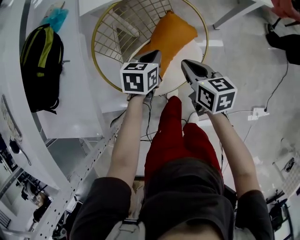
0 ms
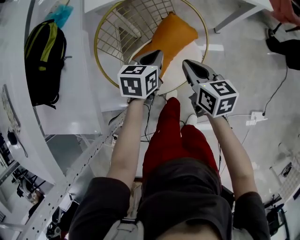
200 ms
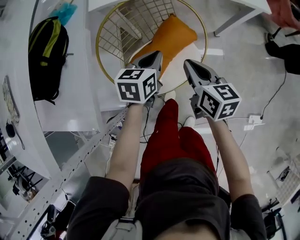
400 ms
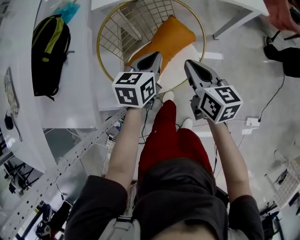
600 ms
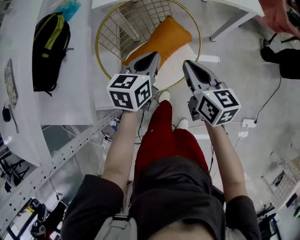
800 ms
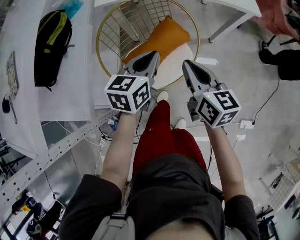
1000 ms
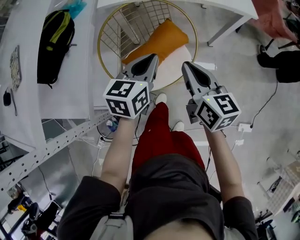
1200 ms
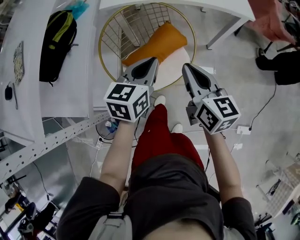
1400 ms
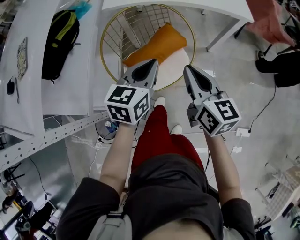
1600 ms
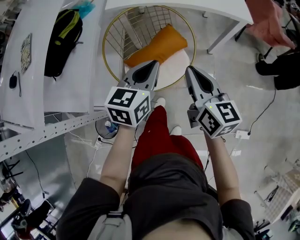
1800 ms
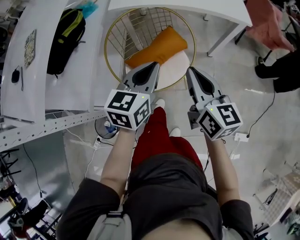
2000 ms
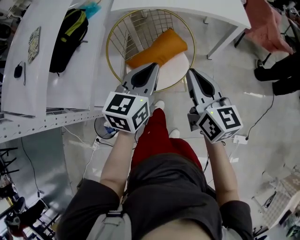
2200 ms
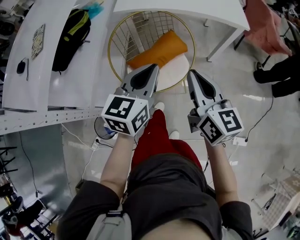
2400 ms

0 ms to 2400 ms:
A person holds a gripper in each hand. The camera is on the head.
0 ms to 1200 ms: The grippers both shift upward and backward by roughly 15 cm. The left gripper turns by some 20 degrees.
1200 ms to 2400 ms: The right gripper heads upward and backward, covering some 15 cm. The left gripper goes about 15 cm backward and upward.

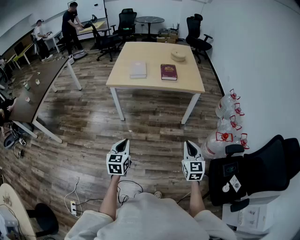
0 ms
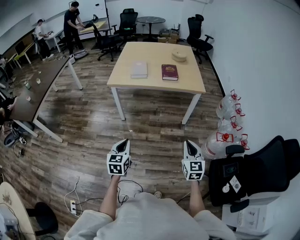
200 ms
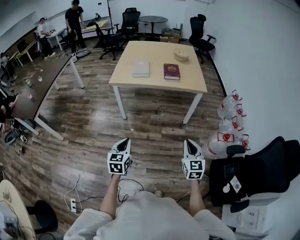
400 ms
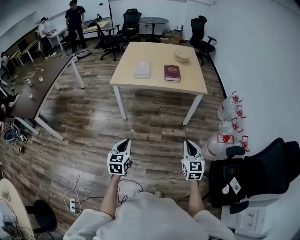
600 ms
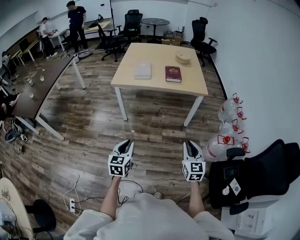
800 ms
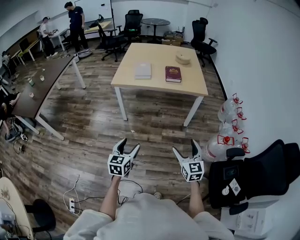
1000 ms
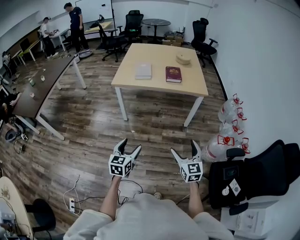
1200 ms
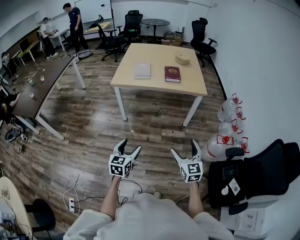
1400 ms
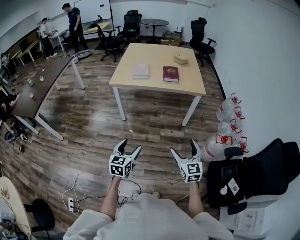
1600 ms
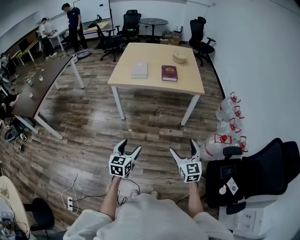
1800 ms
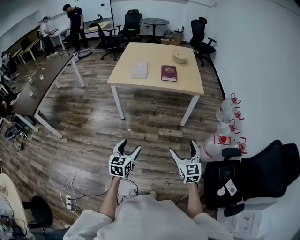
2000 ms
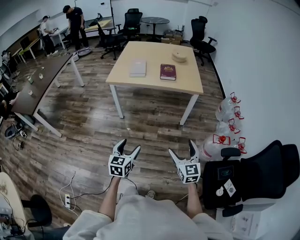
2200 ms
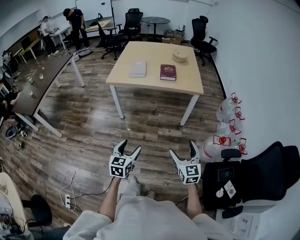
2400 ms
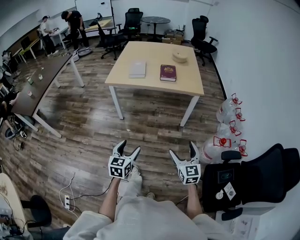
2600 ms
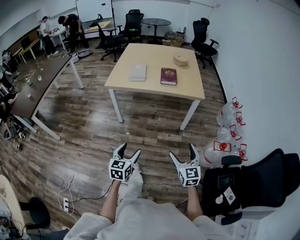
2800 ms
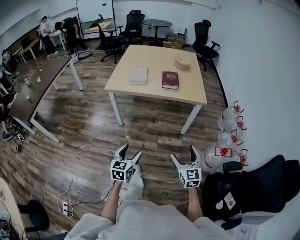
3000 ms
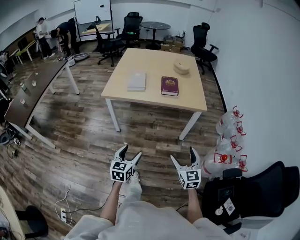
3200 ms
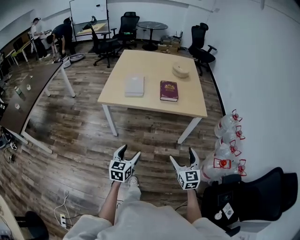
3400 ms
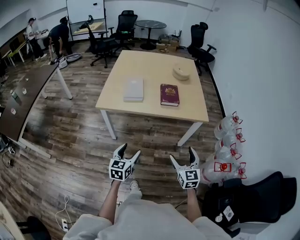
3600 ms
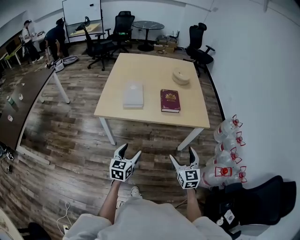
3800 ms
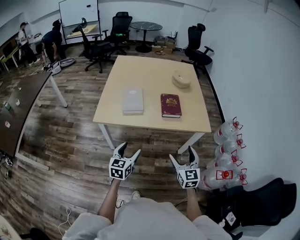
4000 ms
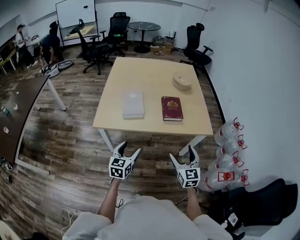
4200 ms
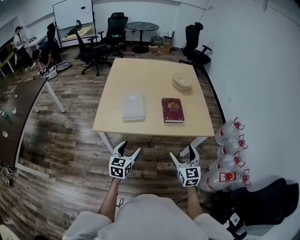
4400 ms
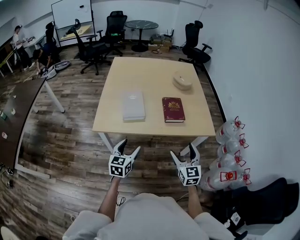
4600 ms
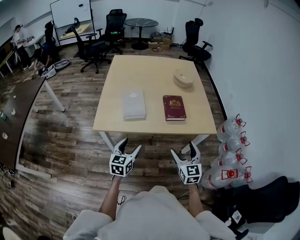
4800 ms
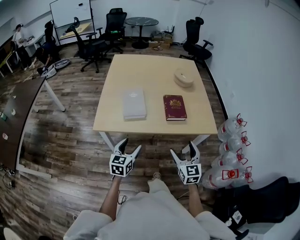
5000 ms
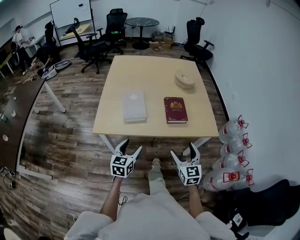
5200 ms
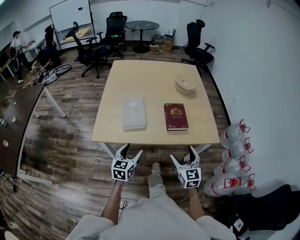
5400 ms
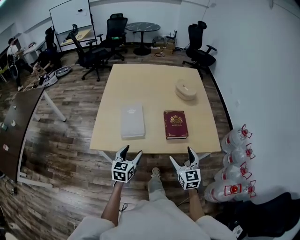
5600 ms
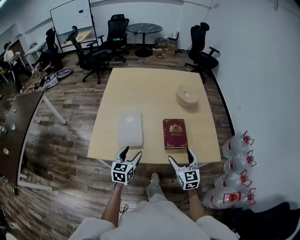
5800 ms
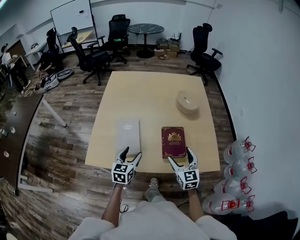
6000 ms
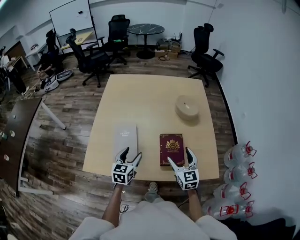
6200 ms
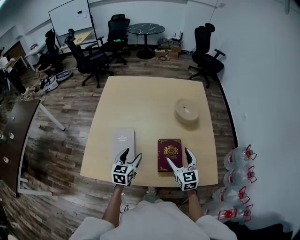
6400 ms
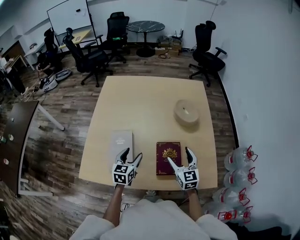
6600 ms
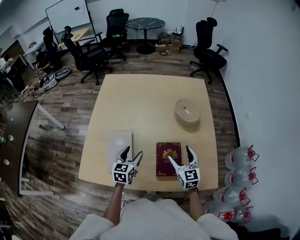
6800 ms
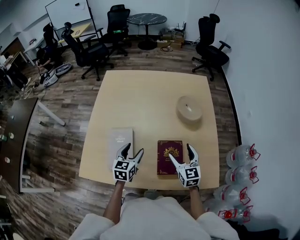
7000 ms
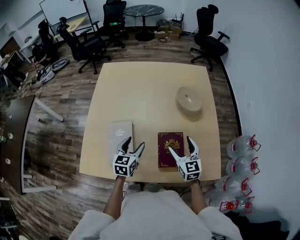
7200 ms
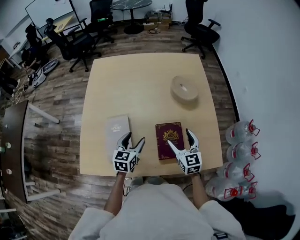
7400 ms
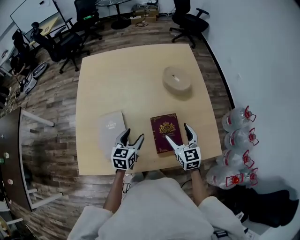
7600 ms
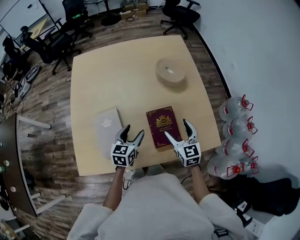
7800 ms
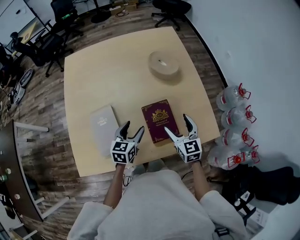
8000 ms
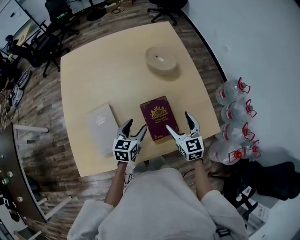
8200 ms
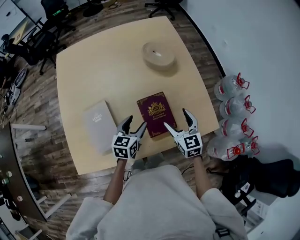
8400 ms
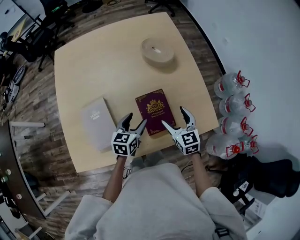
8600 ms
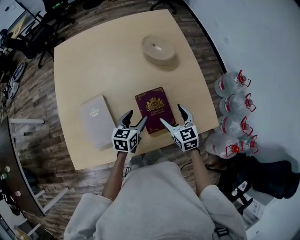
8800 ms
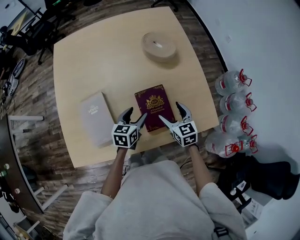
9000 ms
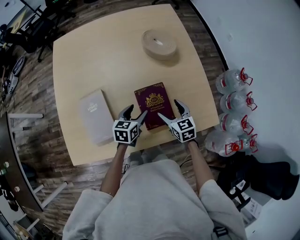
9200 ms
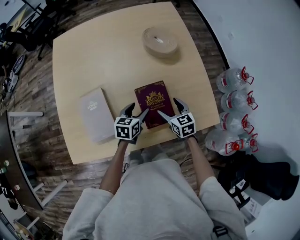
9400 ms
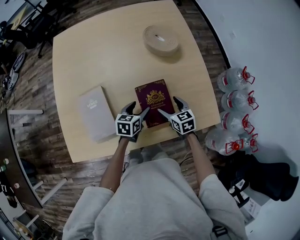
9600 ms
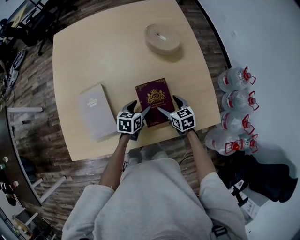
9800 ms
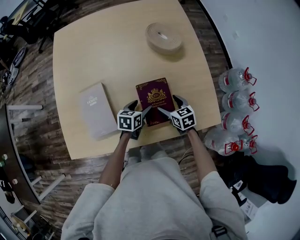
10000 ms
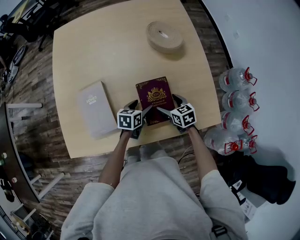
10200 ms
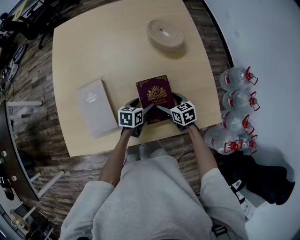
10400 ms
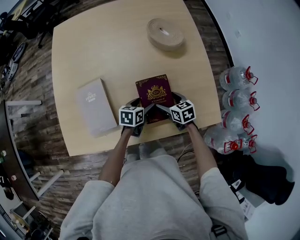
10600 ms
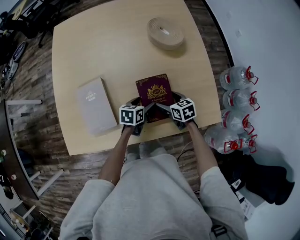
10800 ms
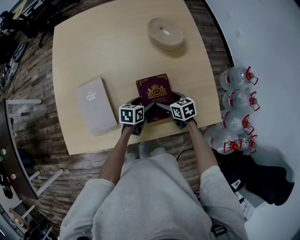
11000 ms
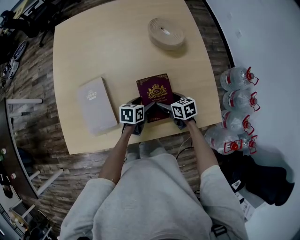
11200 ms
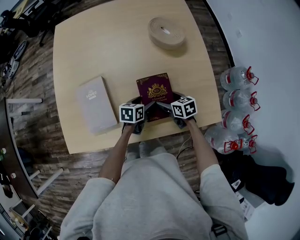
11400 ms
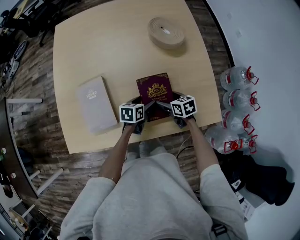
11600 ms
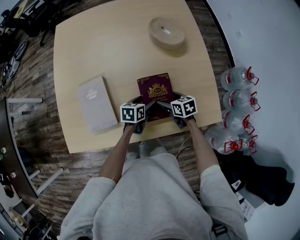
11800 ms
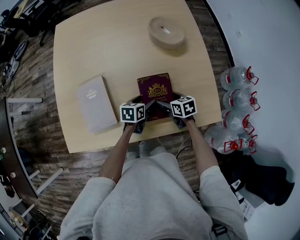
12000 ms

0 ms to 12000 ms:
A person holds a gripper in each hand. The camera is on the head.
0 ms to 1600 ms: The left gripper opens up, while the right gripper opens.
1600 ms to 3000 ms: Both grippers move forward, about 10 cm.
3000 ms to 4400 ms: The grippers both shift forward by roughly 35 cm.
4400 ms to 6000 ms: Both grippers move forward, about 25 cm.
6000 ms to 7600 ms: The left gripper goes some 15 cm forward and to the right, while the right gripper shifts about 10 cm forward.
7600 ms to 9000 ms: The left gripper goes approximately 10 cm to the right and downward, while the right gripper is displaced downward by approximately 10 cm.
9000 ms to 10400 ms: The two grippers go about 10 cm downward. The right gripper changes its angle by approximately 20 degrees.
10400 ms to 12000 ms: The grippers stay close to where they were, moving slightly.

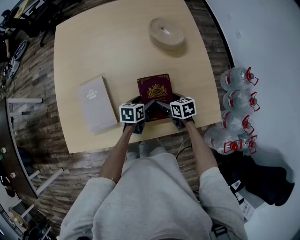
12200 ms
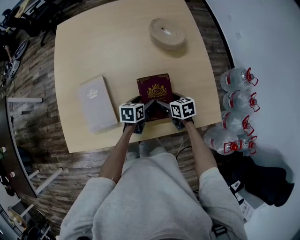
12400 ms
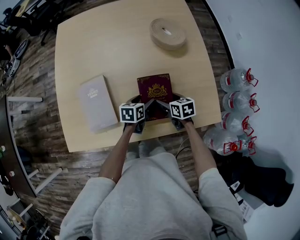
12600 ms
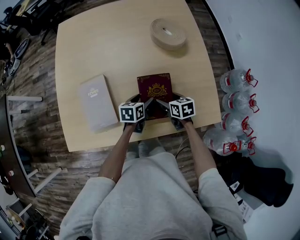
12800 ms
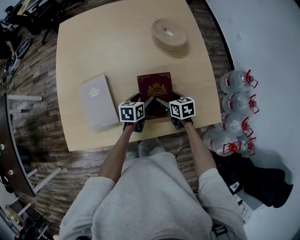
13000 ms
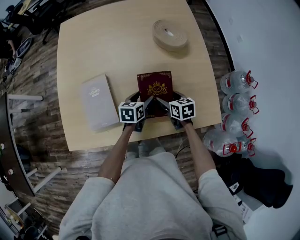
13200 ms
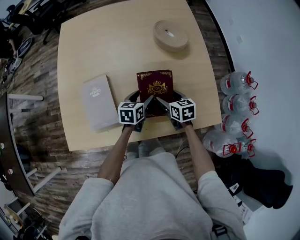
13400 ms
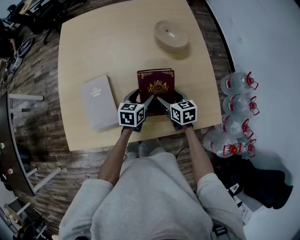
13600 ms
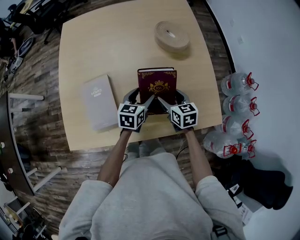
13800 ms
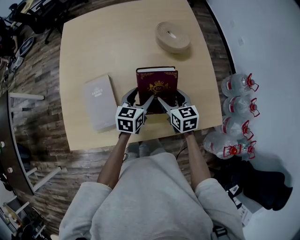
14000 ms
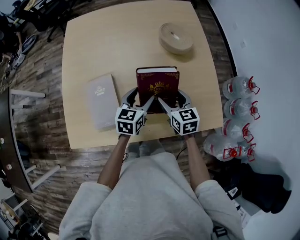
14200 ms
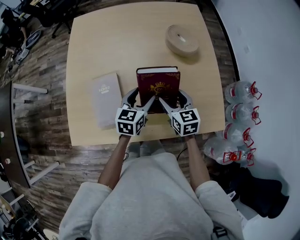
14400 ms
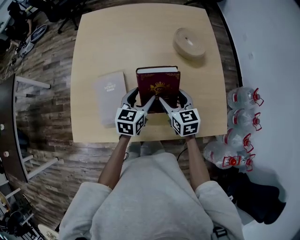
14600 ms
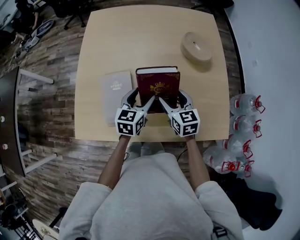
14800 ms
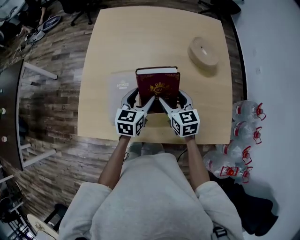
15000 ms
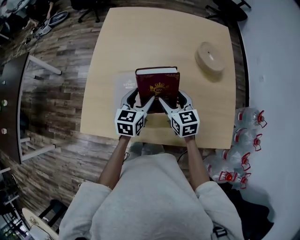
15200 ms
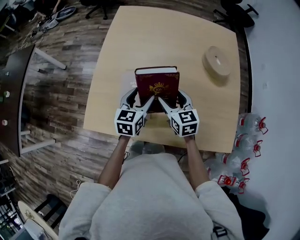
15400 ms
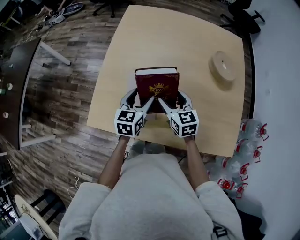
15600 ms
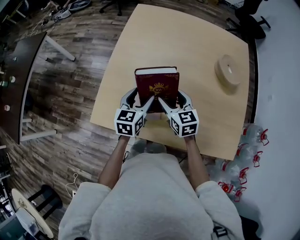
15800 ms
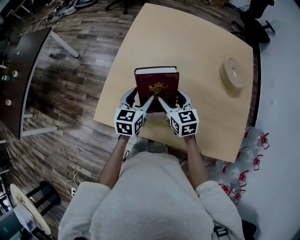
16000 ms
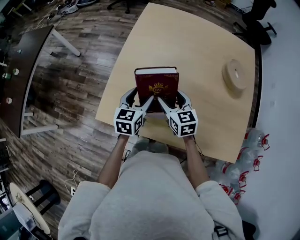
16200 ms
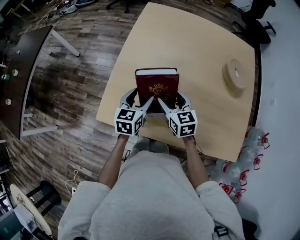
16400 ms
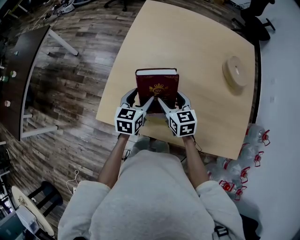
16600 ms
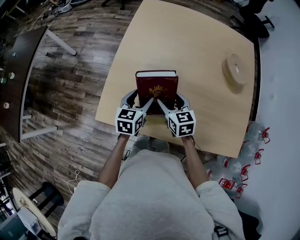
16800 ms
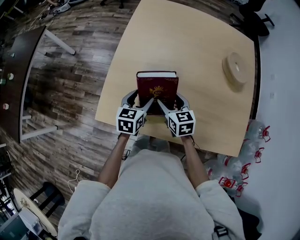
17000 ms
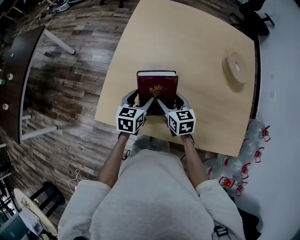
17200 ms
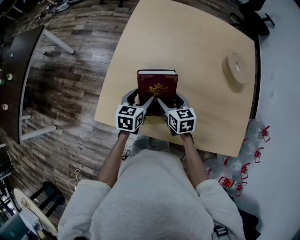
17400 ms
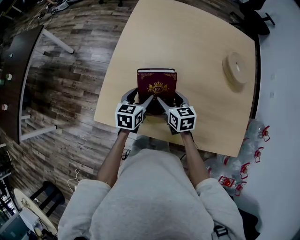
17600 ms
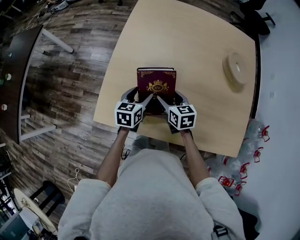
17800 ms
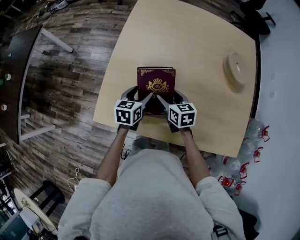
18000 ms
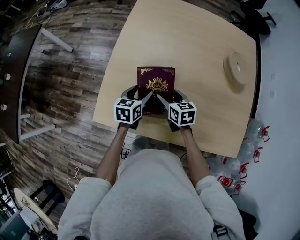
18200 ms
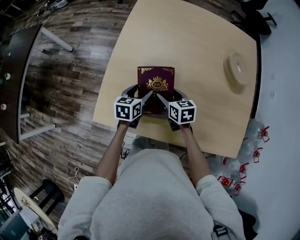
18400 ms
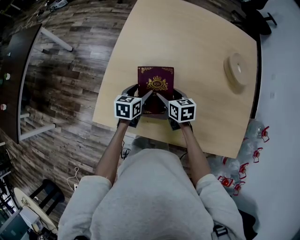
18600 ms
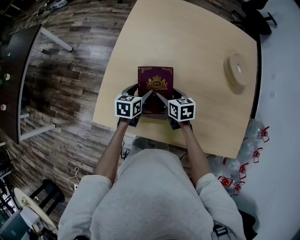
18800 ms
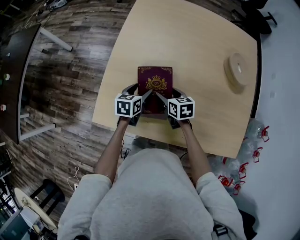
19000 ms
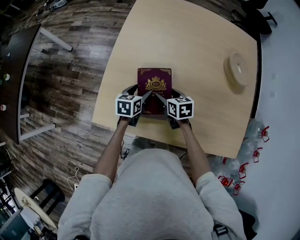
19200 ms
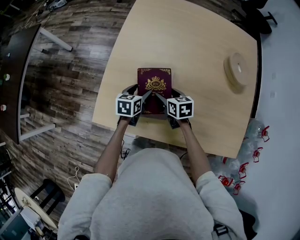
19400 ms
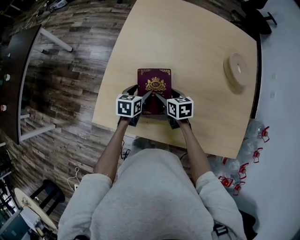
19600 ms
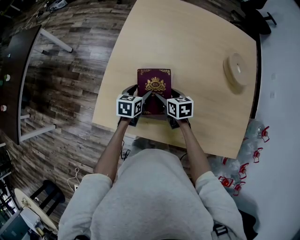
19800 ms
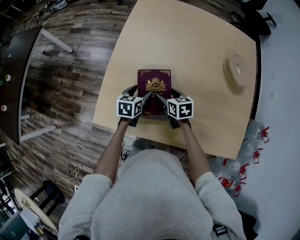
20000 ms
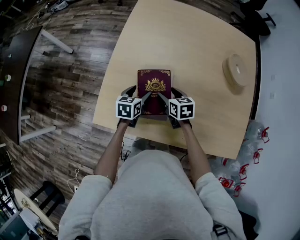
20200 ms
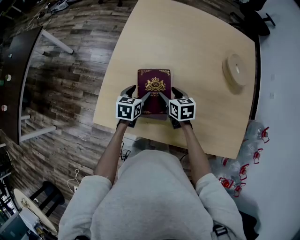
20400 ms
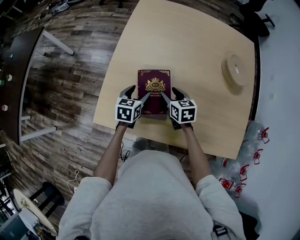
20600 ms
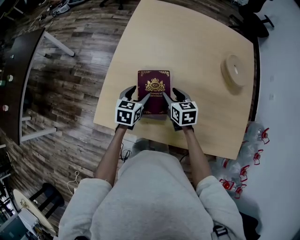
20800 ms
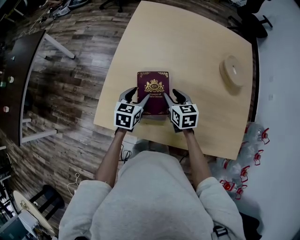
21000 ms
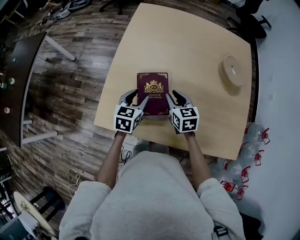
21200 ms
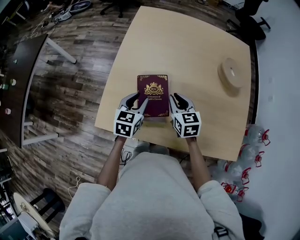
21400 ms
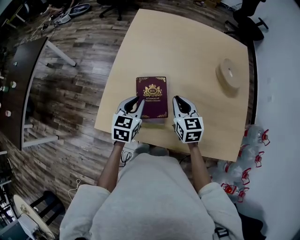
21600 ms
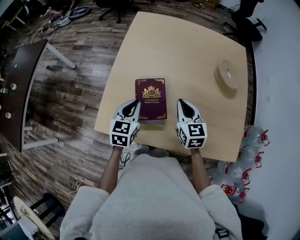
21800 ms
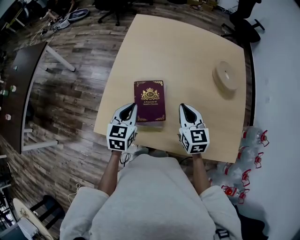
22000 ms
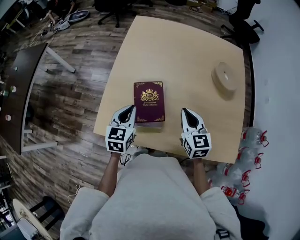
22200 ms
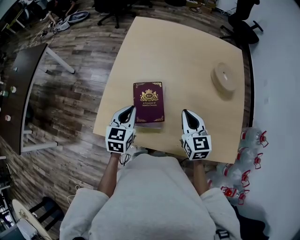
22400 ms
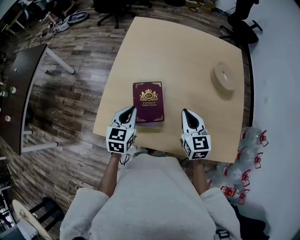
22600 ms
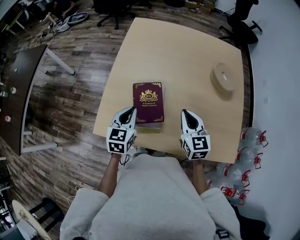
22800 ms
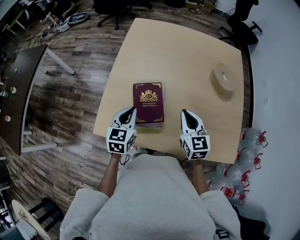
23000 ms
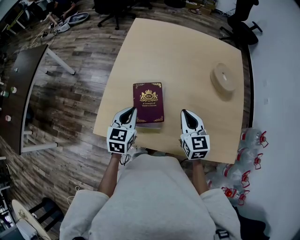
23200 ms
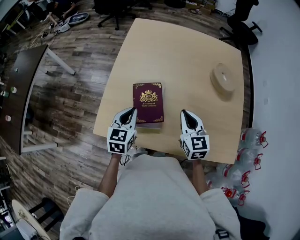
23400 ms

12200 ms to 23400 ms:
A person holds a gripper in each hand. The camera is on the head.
12200 ms to 13800 ms: The two grippers go some 10 cm upward. The left gripper changes its angle by approximately 20 degrees.
13800 ms to 15400 ms: The grippers both shift to the left and upward by roughly 20 cm. The left gripper swivels some 20 degrees, while the right gripper turns by approximately 20 degrees.
15400 ms to 17000 ms: The two grippers go some 10 cm to the left and downward.
17000 ms to 18600 ms: Both grippers move downward, roughly 5 cm.
18600 ms to 20200 ms: The grippers make only small movements.
20200 ms to 21800 ms: The left gripper is displaced upward by roughly 15 cm, turns by approximately 20 degrees, and closes up; the right gripper is displaced upward and to the right by about 15 cm, rotates about 30 degrees, and closes its fingers.
21800 ms to 23400 ms: The right gripper shifts by some 5 cm.
